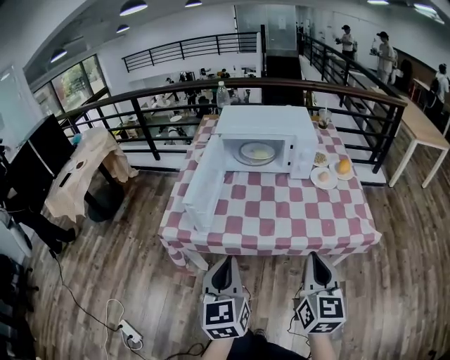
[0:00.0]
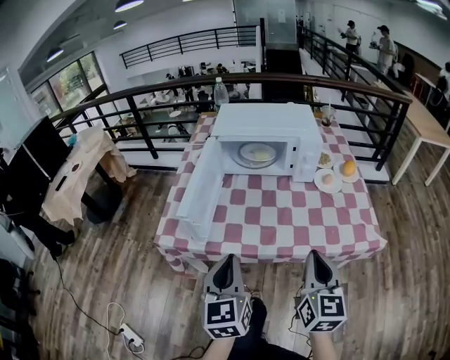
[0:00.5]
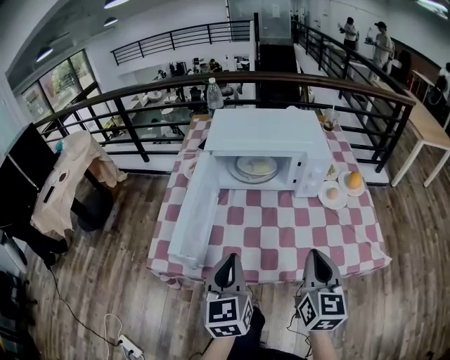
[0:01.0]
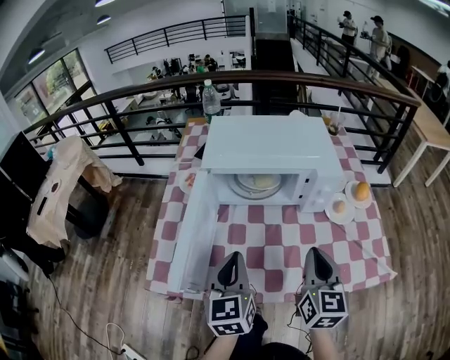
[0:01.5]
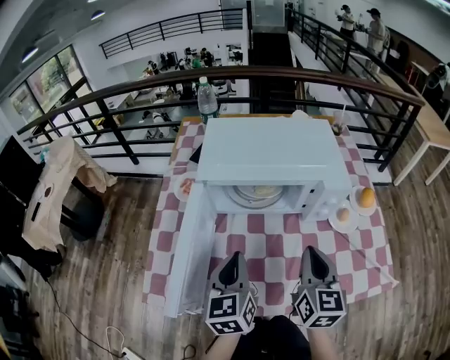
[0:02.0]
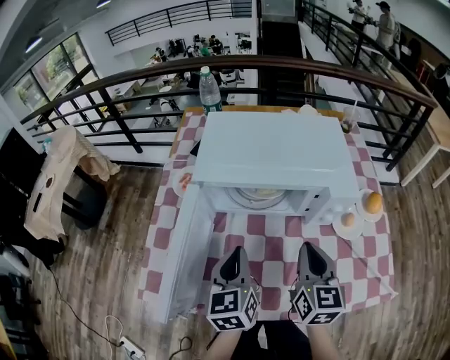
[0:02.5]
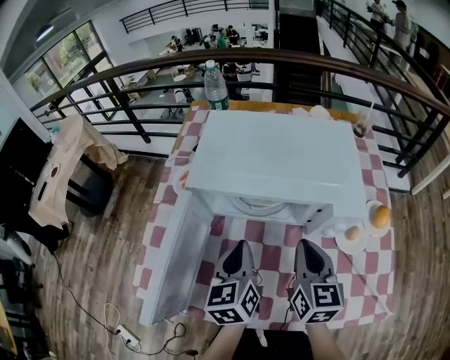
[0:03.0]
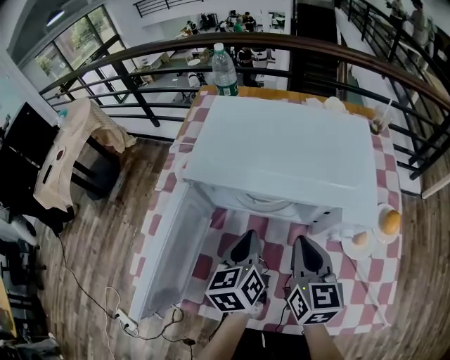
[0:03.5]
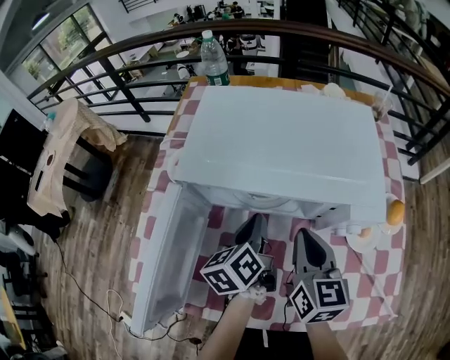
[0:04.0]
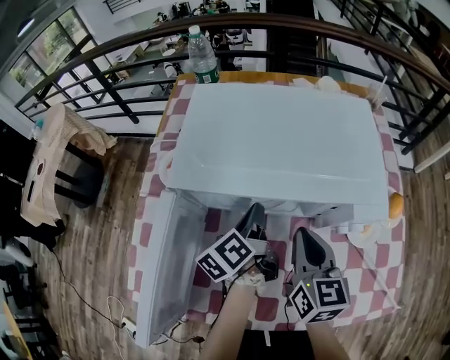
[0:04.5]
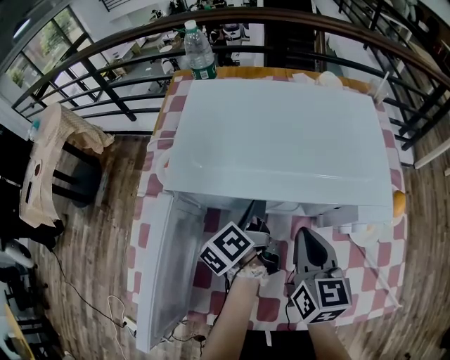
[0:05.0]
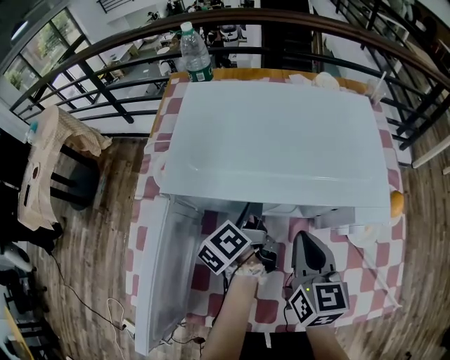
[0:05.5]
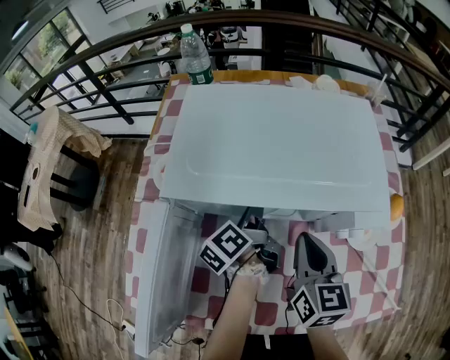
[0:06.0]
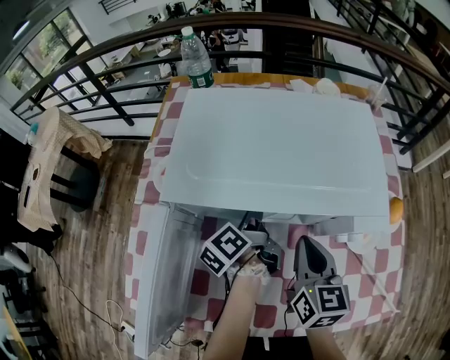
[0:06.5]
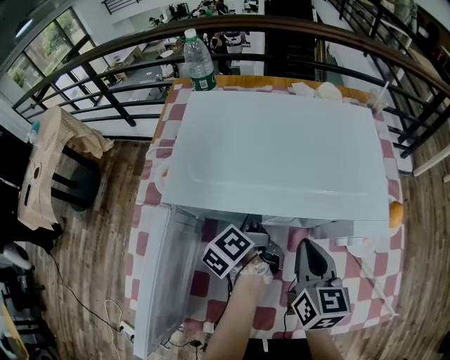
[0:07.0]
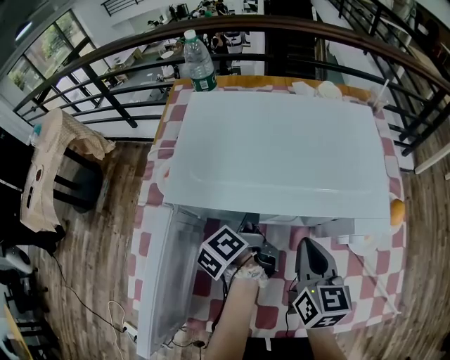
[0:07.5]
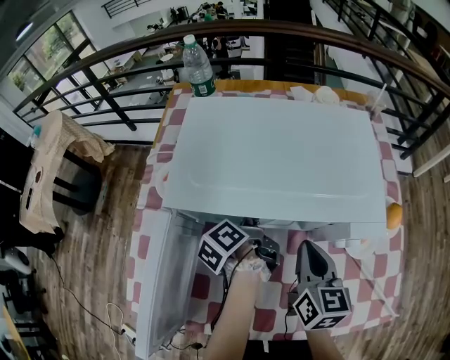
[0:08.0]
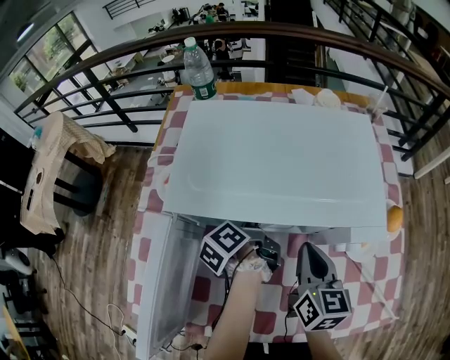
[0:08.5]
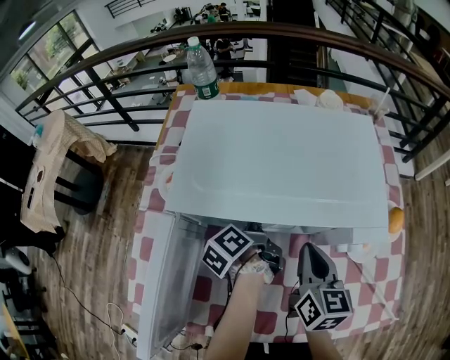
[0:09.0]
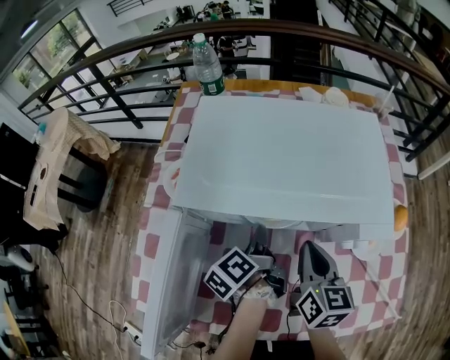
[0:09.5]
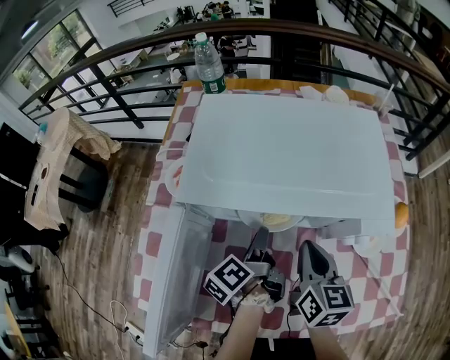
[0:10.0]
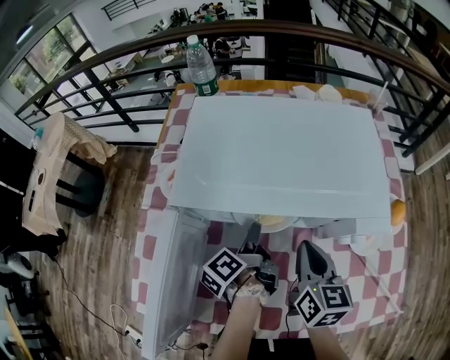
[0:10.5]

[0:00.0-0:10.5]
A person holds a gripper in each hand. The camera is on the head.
0:00.0 to 0:02.0: Both grippers travel together forward, approximately 35 cm.
0:02.0 to 0:04.0: The right gripper moves forward, roughly 15 cm. Meanwhile the left gripper goes about 20 cm forward, downward and to the right, and swivels roughly 30 degrees.
0:04.0 to 0:06.5: The left gripper is displaced forward by some 5 cm, and turns by about 30 degrees.
0:06.5 to 0:08.5: The left gripper closes and opens again.
0:08.5 to 0:10.5: The left gripper heads backward, covering some 5 cm.

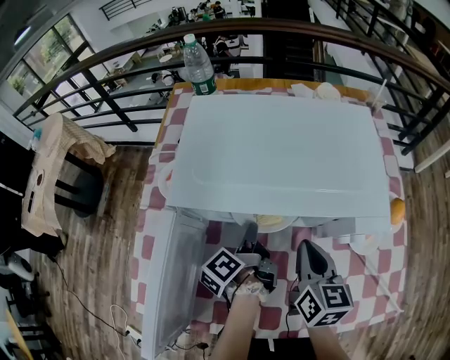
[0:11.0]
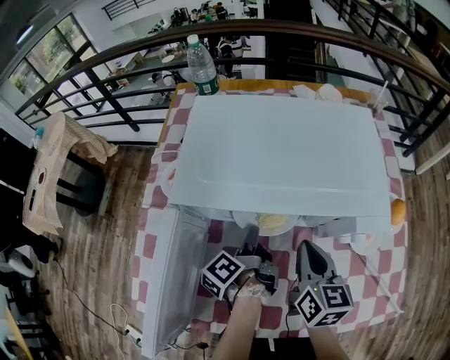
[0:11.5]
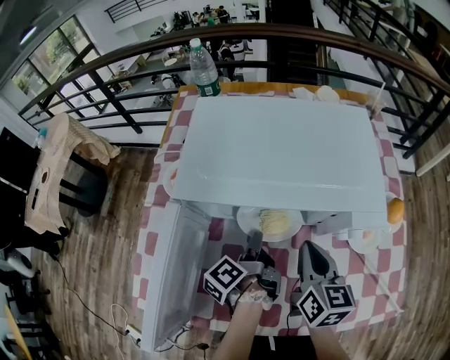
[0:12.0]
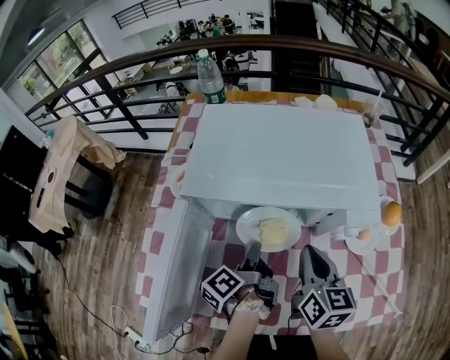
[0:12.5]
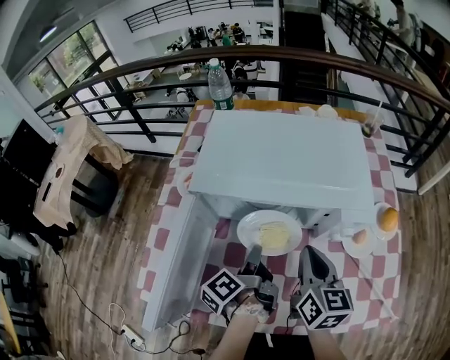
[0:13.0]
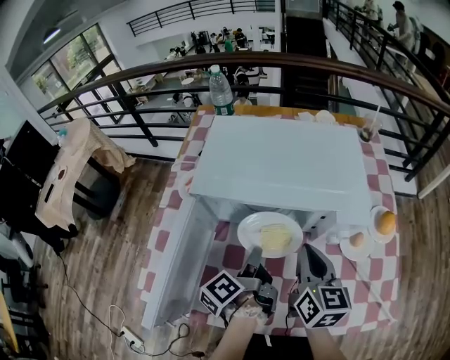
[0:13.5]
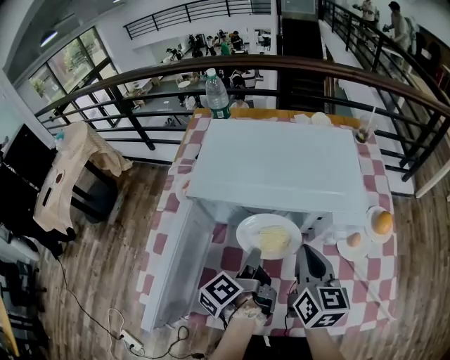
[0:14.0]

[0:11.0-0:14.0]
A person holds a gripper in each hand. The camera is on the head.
0:11.0 to 0:12.5: The left gripper shifts roughly 5 cm backward.
0:12.5 to 0:14.0: The left gripper changes place by some 5 cm.

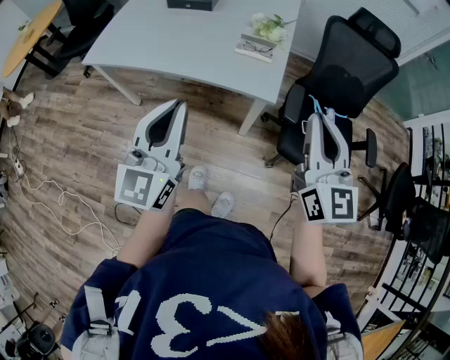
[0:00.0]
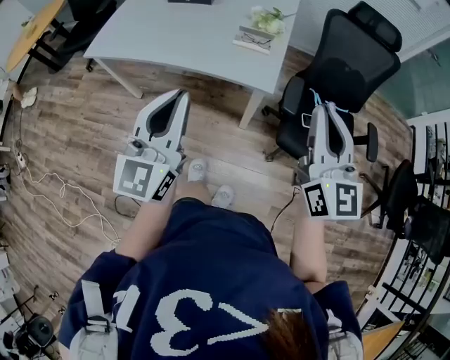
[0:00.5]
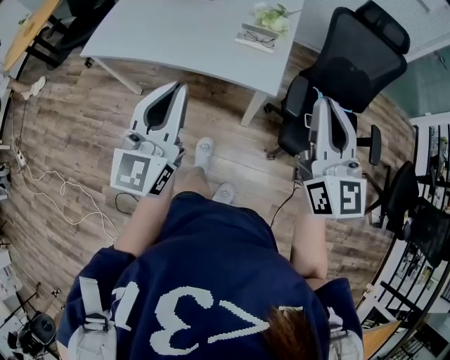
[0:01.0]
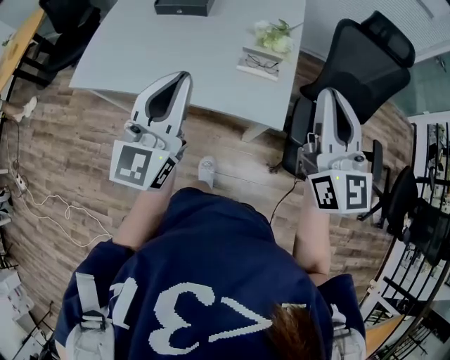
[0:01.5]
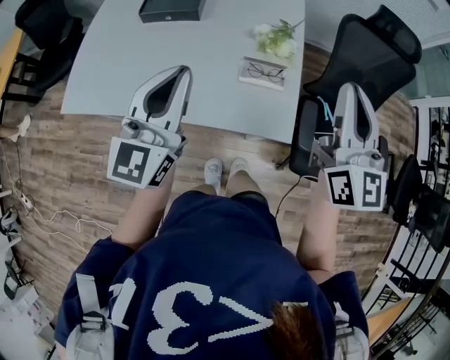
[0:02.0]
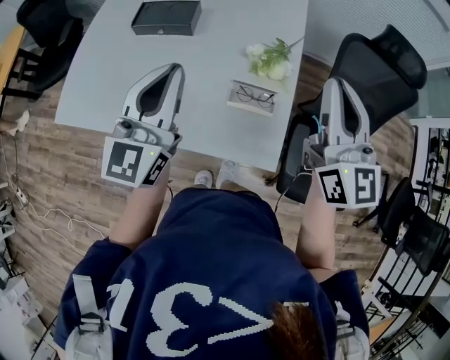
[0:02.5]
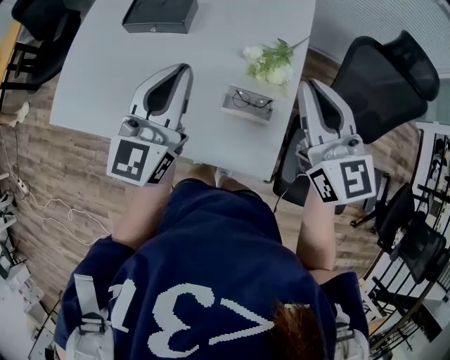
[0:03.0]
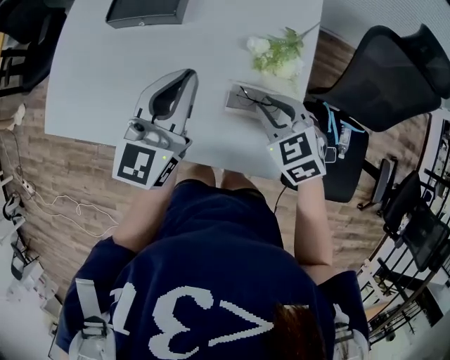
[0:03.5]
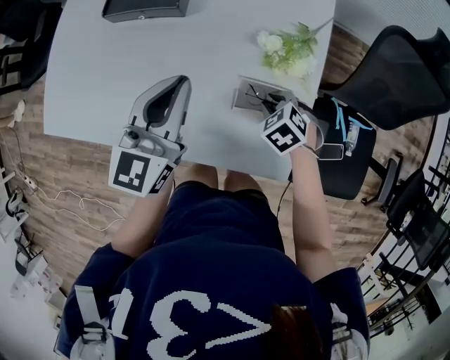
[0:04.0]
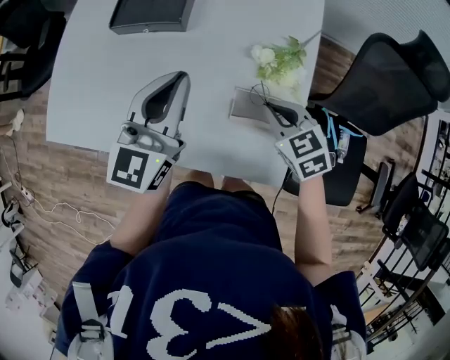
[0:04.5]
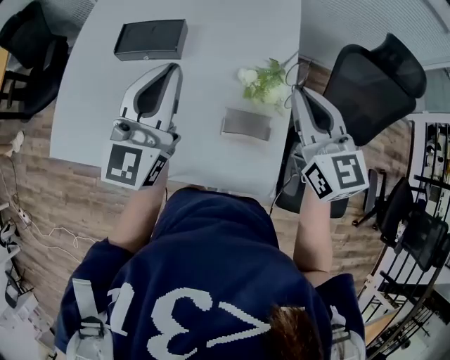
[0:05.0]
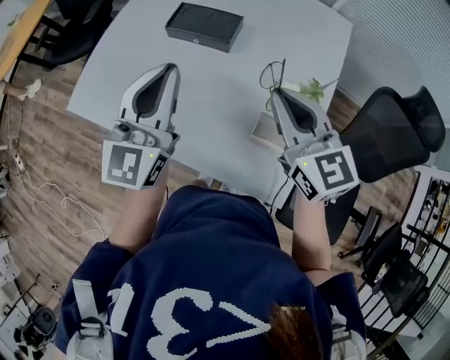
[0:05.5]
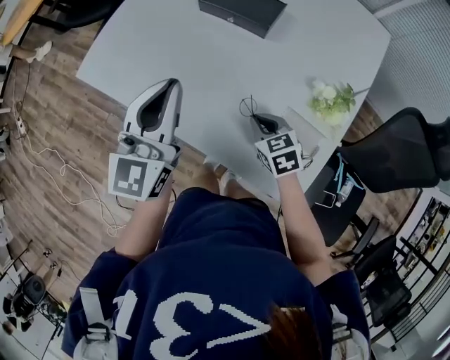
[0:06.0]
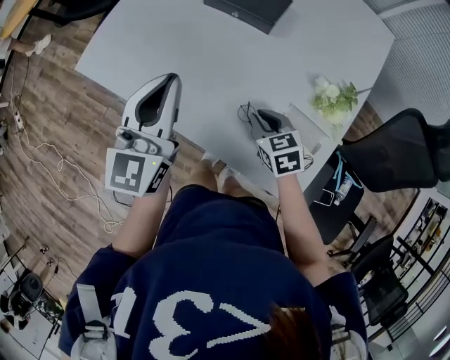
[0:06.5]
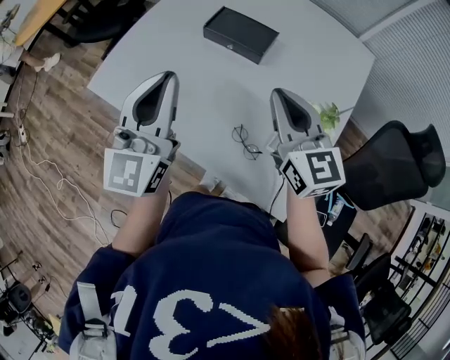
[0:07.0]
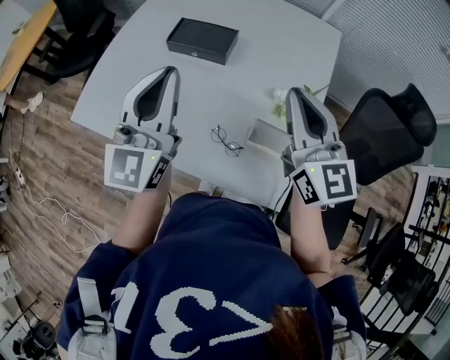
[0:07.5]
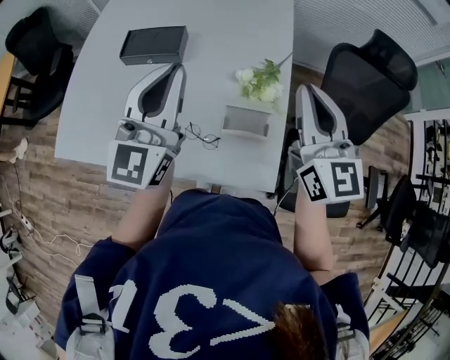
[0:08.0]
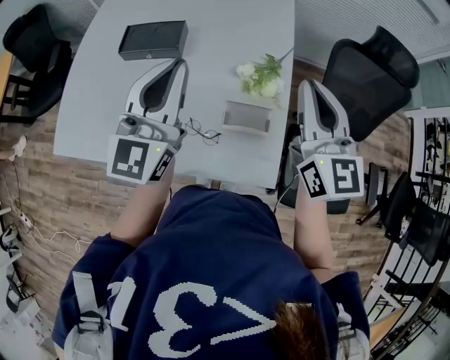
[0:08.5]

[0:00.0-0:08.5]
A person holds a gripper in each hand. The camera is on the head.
0:00.0 to 0:02.0: Both grippers travel together forward, approximately 30 cm.
0:02.0 to 0:04.0: The right gripper is displaced downward and forward by about 40 cm, and angles its fingers downward, by about 80 degrees, while the left gripper shifts some 20 cm forward and downward.
0:04.0 to 0:06.5: The left gripper ends up roughly 20 cm from where it was, and rotates approximately 30 degrees. The right gripper goes upward and returns, some 35 cm each way, and changes its angle by roughly 20 degrees.
0:06.5 to 0:08.5: The left gripper changes place by some 20 cm, and turns by roughly 30 degrees, while the right gripper moves upward, roughly 30 cm, and points its fingers some 50 degrees further upward.

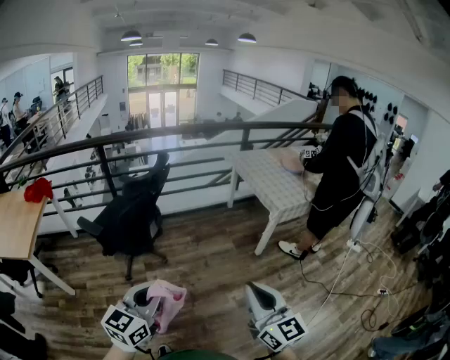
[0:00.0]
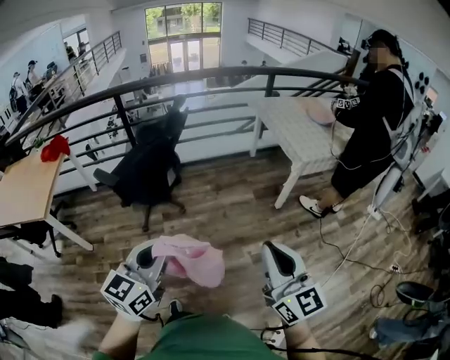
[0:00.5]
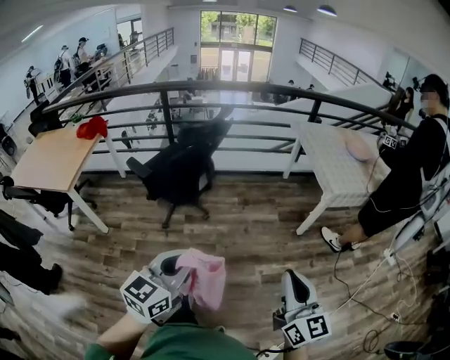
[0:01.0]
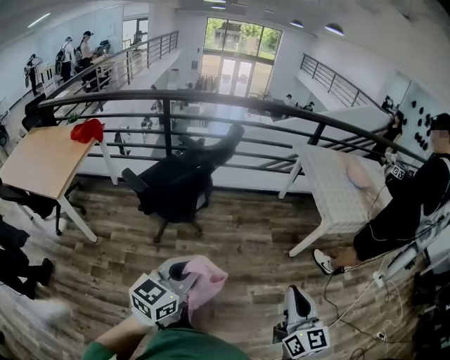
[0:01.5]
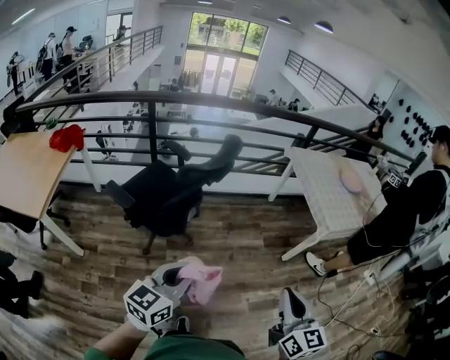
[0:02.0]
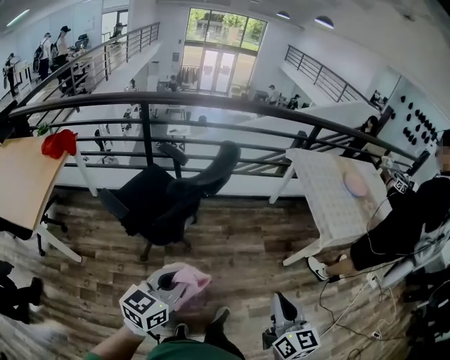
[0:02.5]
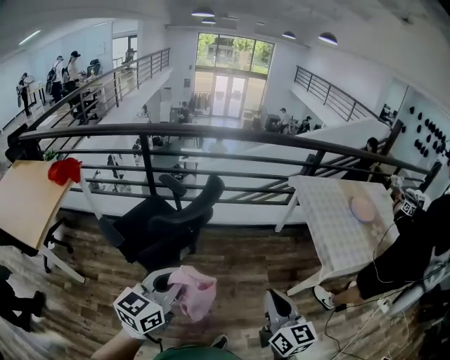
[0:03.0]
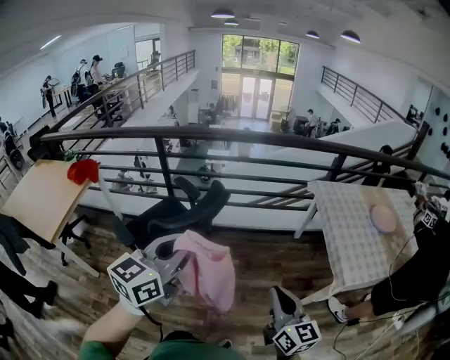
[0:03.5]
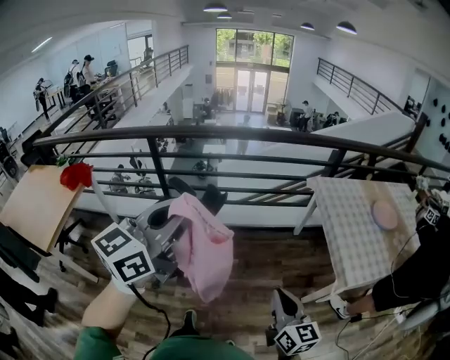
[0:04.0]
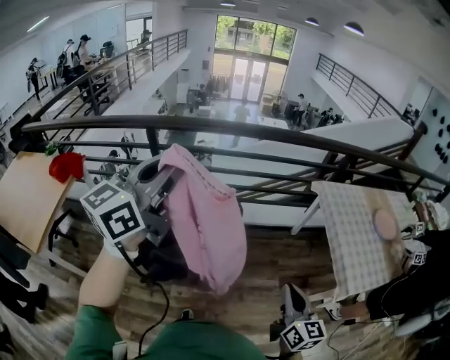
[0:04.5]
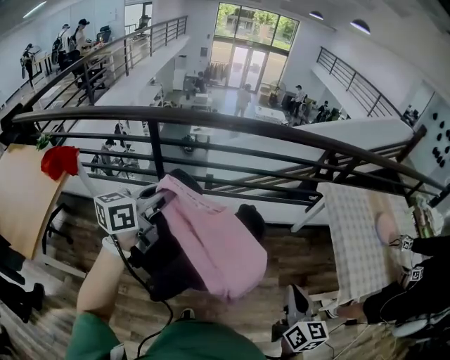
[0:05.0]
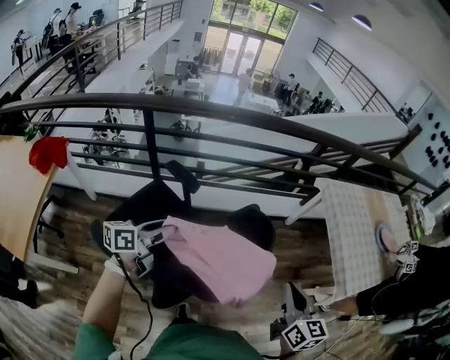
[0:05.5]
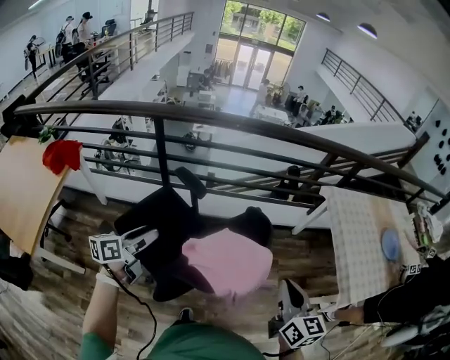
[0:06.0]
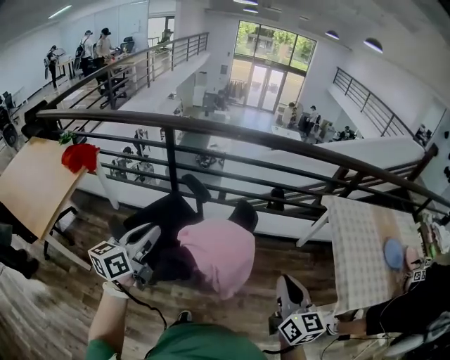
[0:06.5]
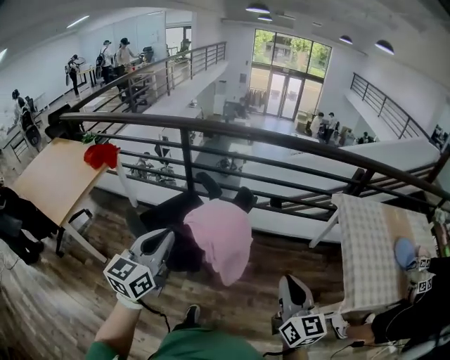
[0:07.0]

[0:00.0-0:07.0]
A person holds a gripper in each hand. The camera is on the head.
0:00.0 to 0:02.0: Both grippers travel together forward, roughly 25 cm.
0:02.0 to 0:03.5: The left gripper is displaced forward and upward by approximately 35 cm, while the right gripper heads forward, covering about 30 cm.
0:03.5 to 0:05.0: The left gripper heads to the left and forward, covering roughly 40 cm. The right gripper travels forward and to the left by some 25 cm.
0:05.0 to 0:07.0: The left gripper goes downward and returns, about 15 cm each way, swivels approximately 30 degrees, and opens, then closes again. Meanwhile the right gripper moves some 15 cm, and swivels about 20 degrees.
